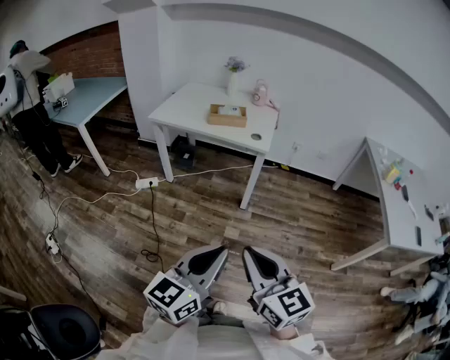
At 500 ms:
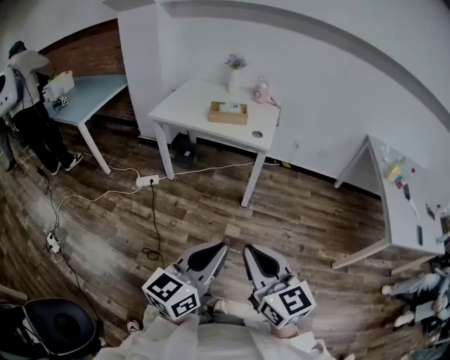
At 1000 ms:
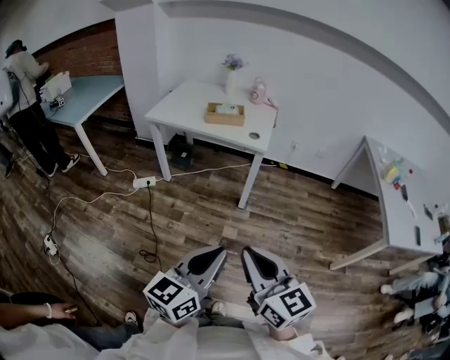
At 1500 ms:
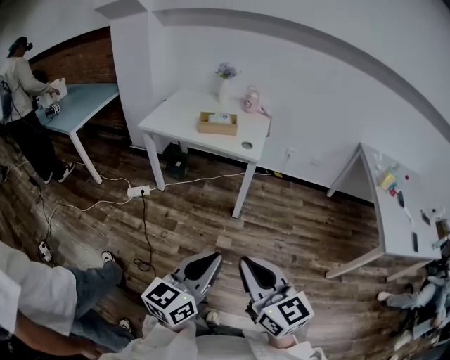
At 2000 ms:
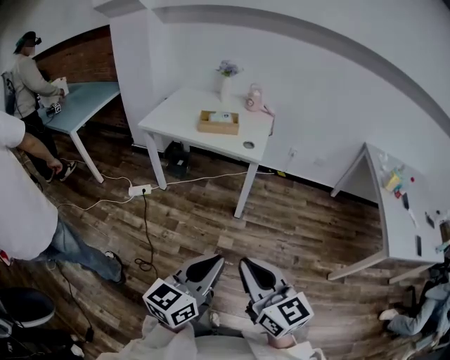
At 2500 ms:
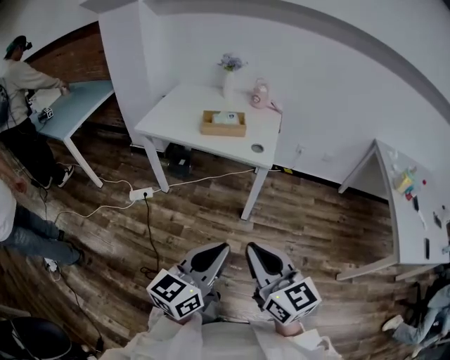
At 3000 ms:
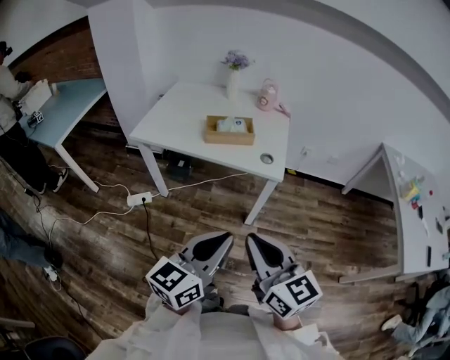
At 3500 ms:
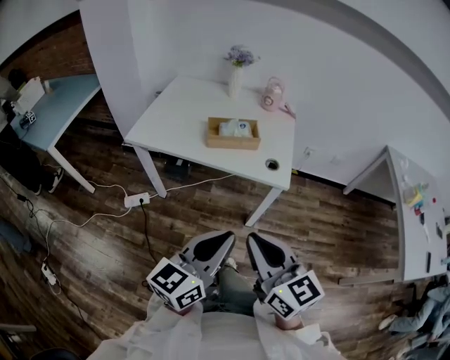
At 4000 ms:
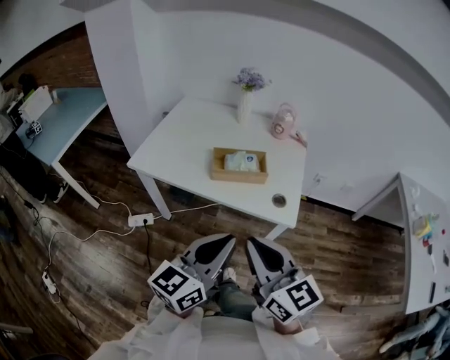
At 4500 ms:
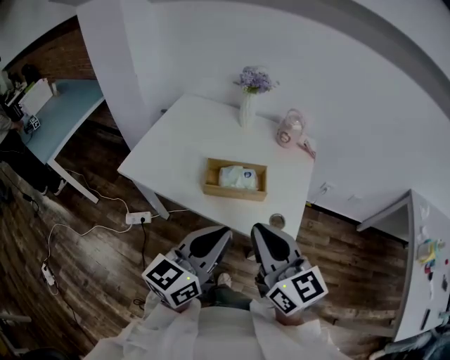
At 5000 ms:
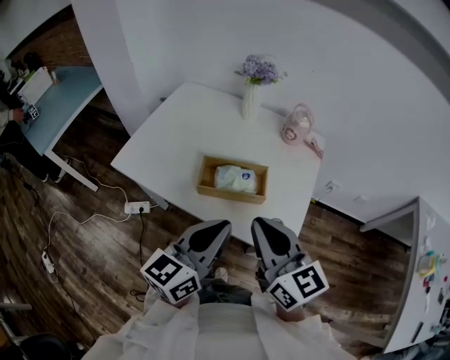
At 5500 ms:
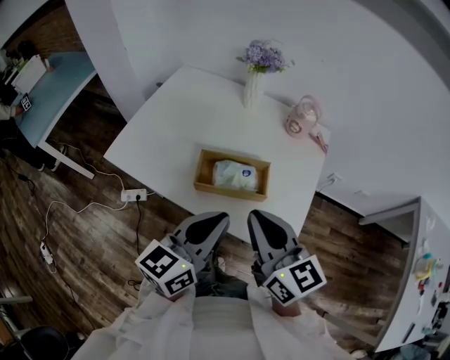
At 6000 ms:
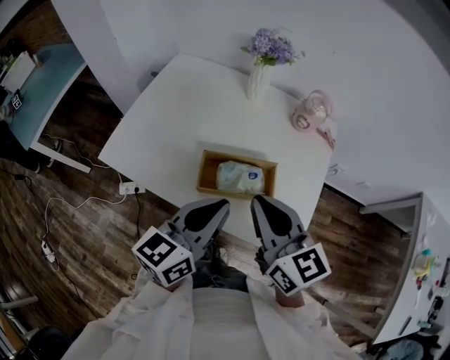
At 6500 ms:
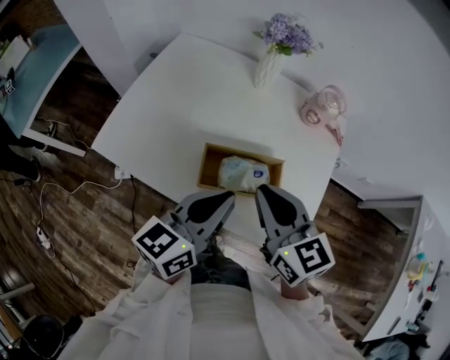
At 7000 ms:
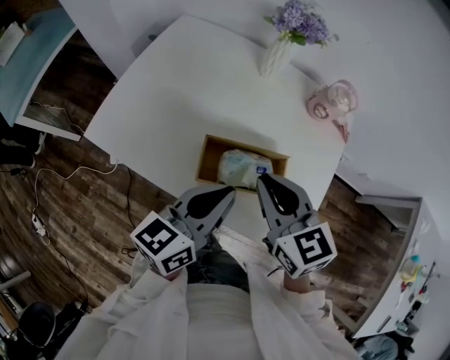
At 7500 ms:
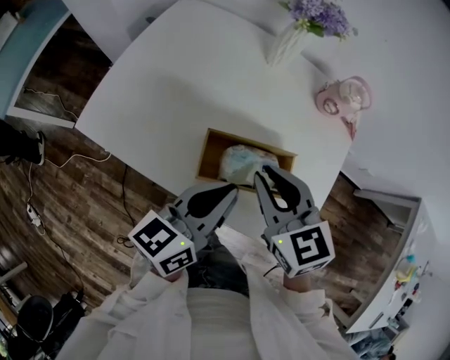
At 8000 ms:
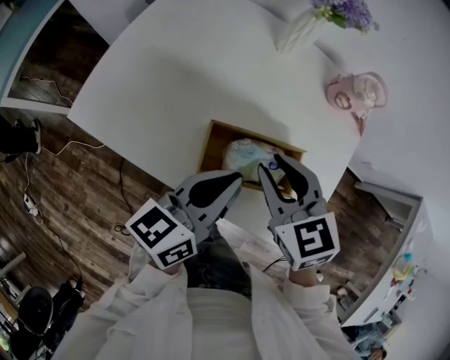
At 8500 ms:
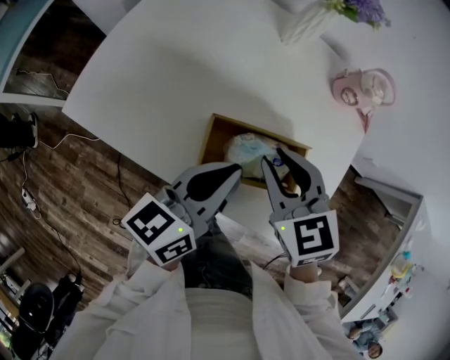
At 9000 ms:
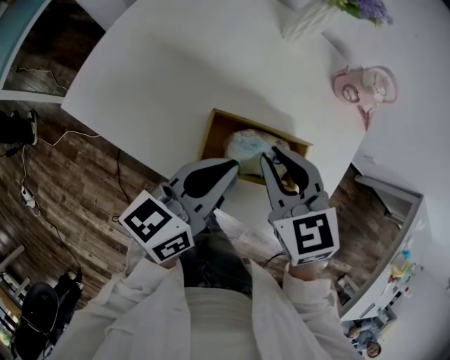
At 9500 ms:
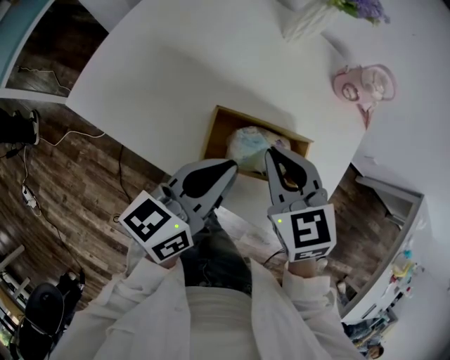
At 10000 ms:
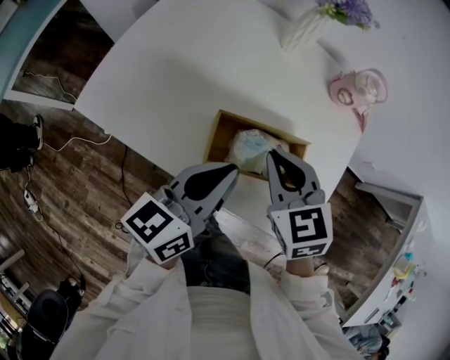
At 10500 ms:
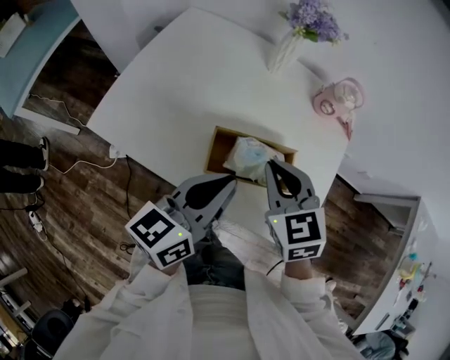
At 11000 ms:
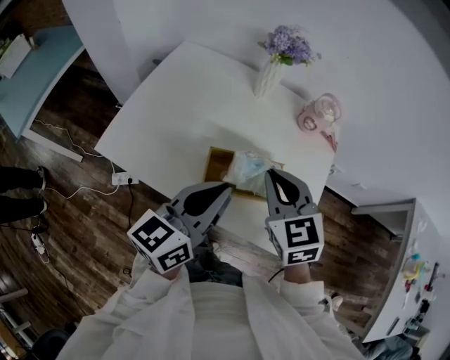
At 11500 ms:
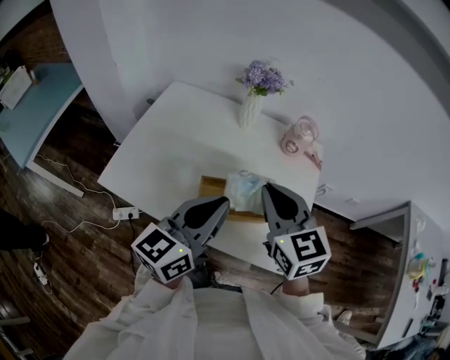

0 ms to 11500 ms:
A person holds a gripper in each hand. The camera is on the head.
0 ms to 2000 ms: The right gripper changes place by about 5 cm; the left gripper goes about 5 cm forward.
2000 ms to 4000 ms: The two grippers travel together, forward, some 40 cm.
4000 ms to 6000 ms: Both grippers travel together forward, approximately 25 cm.
6000 ms to 7500 ms: The left gripper moves downward, about 5 cm. Meanwhile the right gripper travels downward and forward by about 10 cm, and swivels about 20 degrees.
7500 ms to 9500 ms: The grippers move only a little.
9500 ms to 11500 ms: Both grippers move upward, some 15 cm. The left gripper swivels about 20 degrees, while the right gripper swivels about 30 degrees.

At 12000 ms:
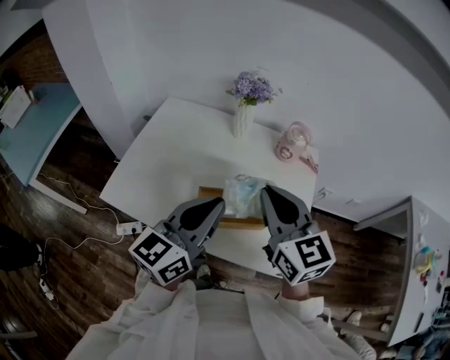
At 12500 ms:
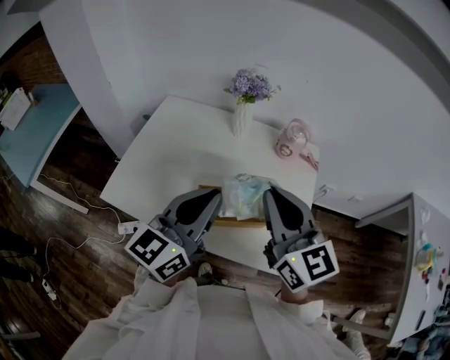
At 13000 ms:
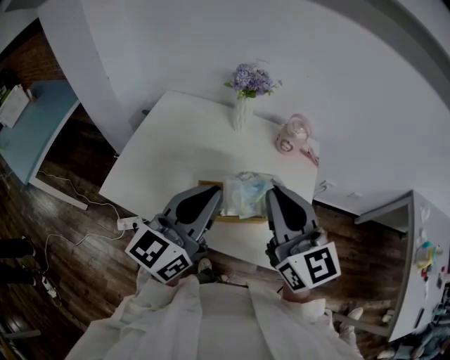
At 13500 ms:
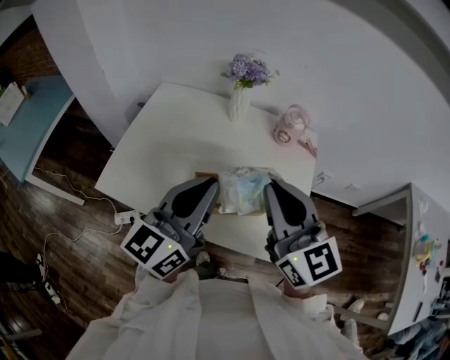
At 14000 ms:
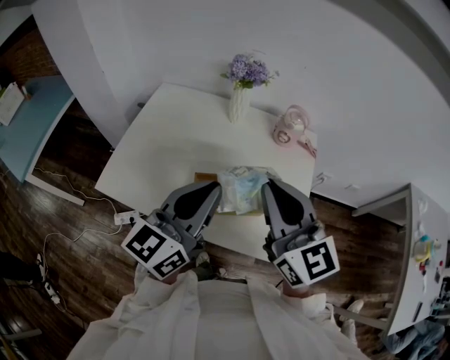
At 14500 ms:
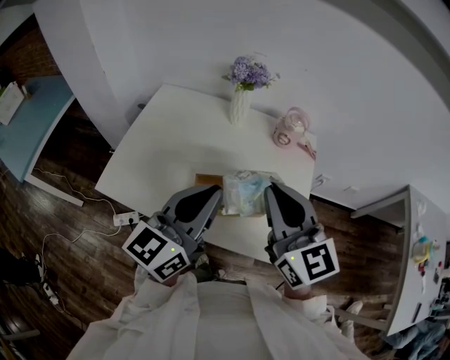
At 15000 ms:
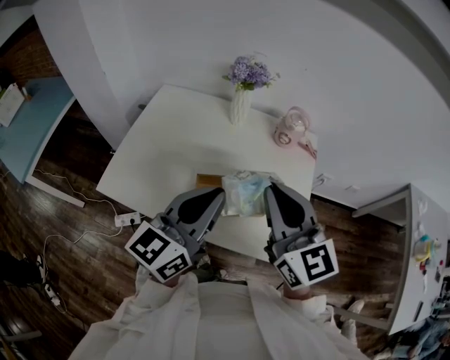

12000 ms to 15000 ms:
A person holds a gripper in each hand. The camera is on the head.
12000 ms to 15000 ms: The grippers stay close to where they were, moving slightly.

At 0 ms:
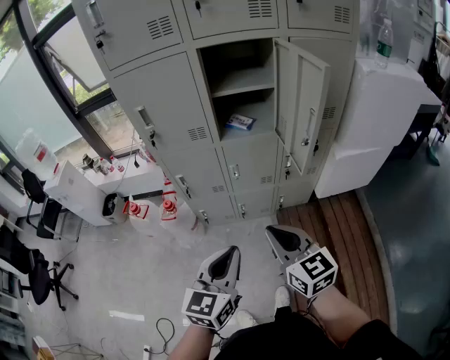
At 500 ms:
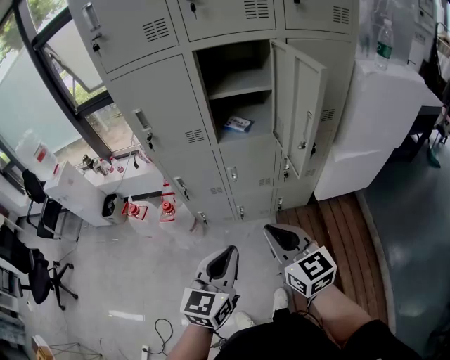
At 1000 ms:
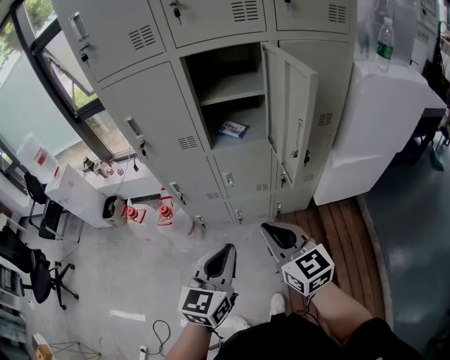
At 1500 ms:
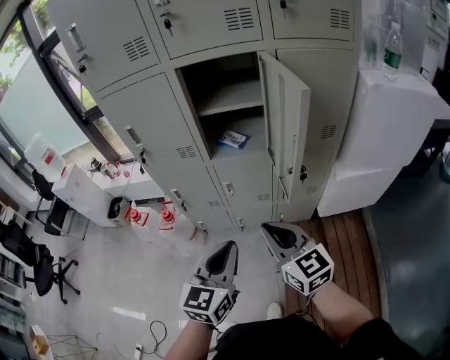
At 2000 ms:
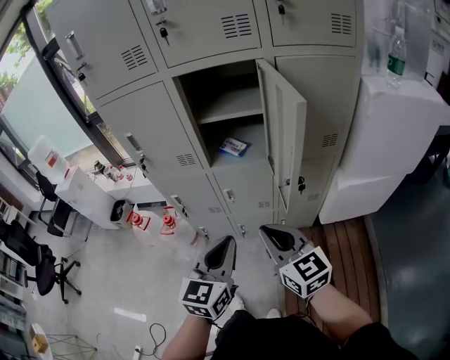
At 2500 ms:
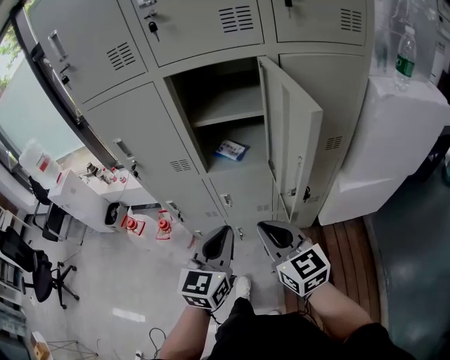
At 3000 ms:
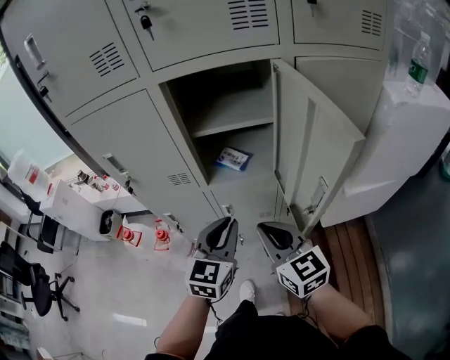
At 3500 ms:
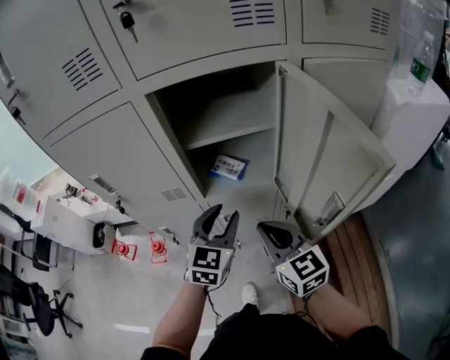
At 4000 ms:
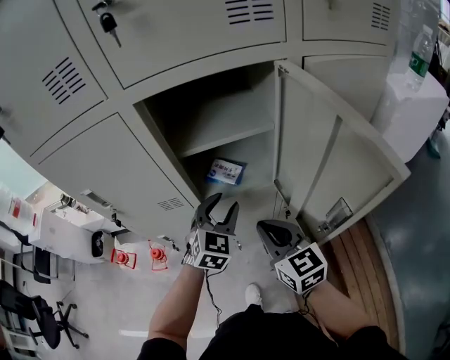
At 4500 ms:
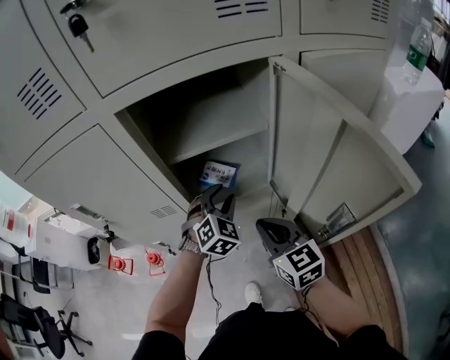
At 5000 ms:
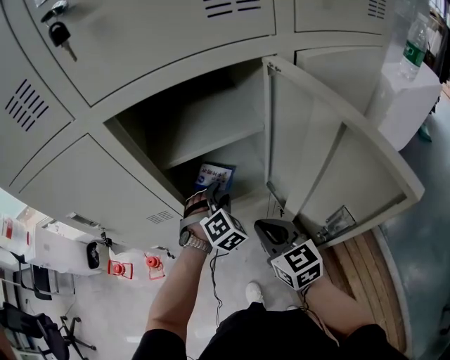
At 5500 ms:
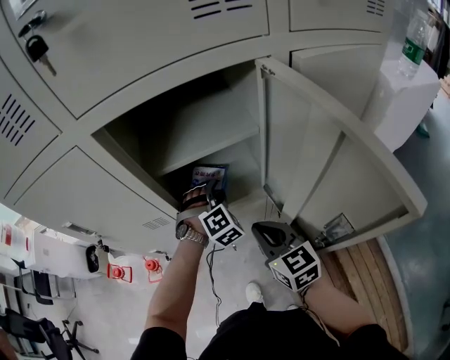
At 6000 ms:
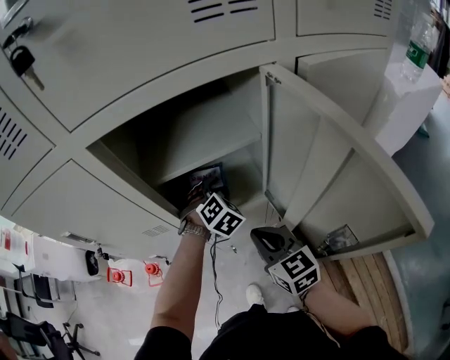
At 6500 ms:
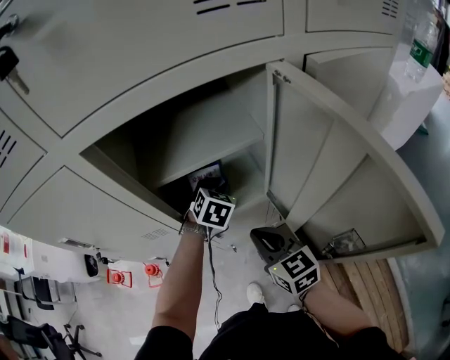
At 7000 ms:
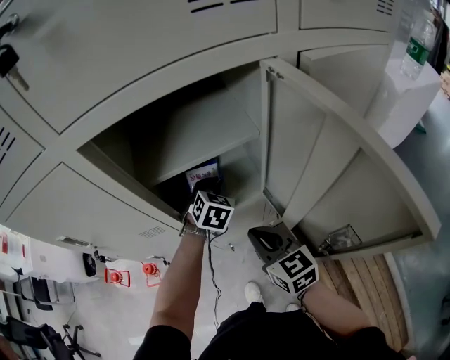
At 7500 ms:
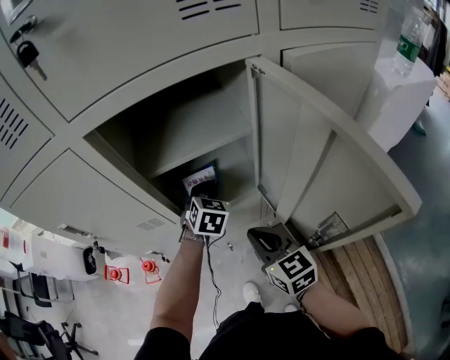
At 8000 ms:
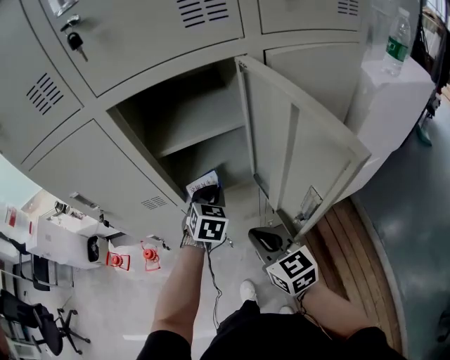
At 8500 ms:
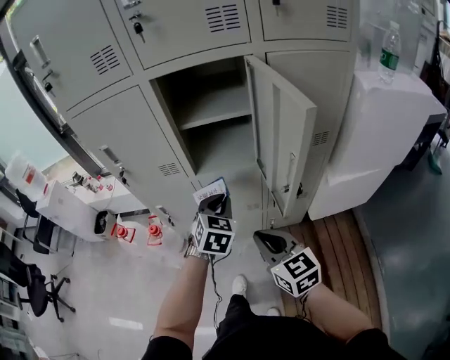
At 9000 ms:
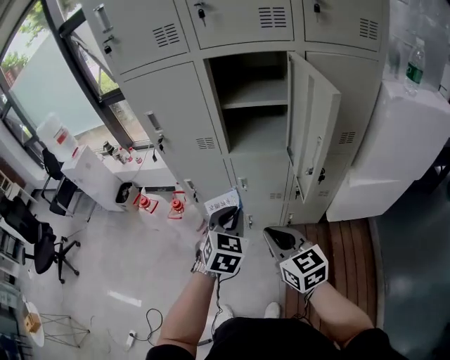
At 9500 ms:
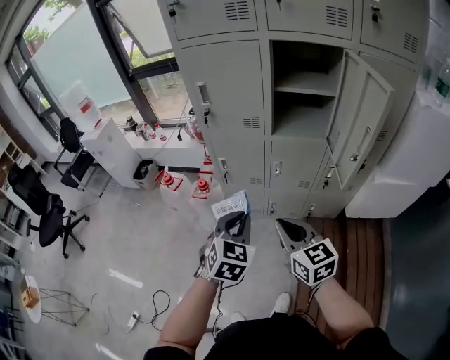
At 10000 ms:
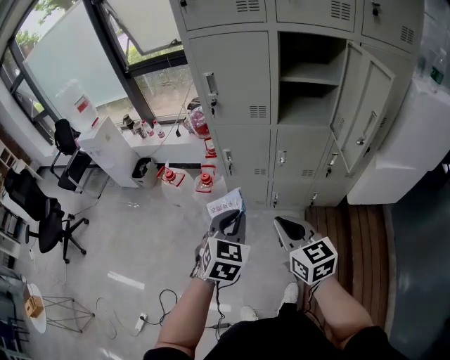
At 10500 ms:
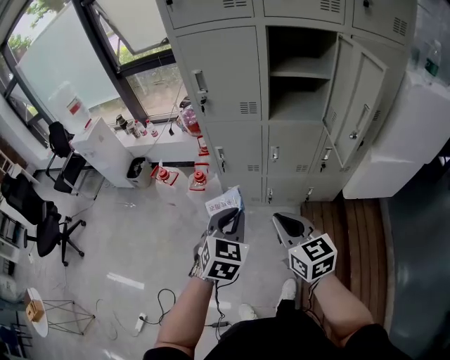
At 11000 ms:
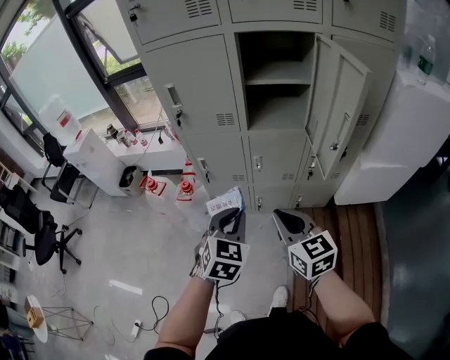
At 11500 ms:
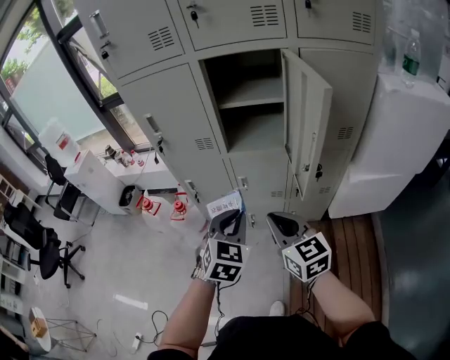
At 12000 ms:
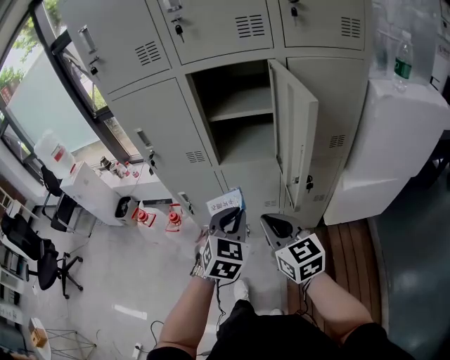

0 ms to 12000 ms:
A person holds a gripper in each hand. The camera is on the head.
0 ms to 2000 ms: The two grippers go about 15 cm forward and to the right.
2000 ms to 4000 ms: The left gripper moves forward, some 30 cm, rotates about 30 degrees, and opens. Meanwhile the right gripper heads forward, covering roughly 20 cm.
4000 ms to 6000 ms: The left gripper heads forward and downward, covering about 15 cm, and swivels about 30 degrees; the right gripper moves about 5 cm.
6000 ms to 8000 ms: Both grippers move backward, roughly 10 cm. The left gripper rotates some 30 degrees, and closes up.
8000 ms to 10000 ms: Both grippers move backward and to the left, approximately 40 cm.
10000 ms to 12000 ms: The grippers both shift to the right and forward by approximately 25 cm.
